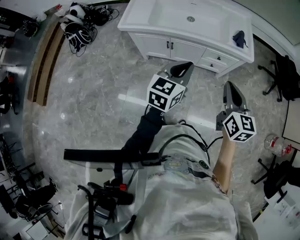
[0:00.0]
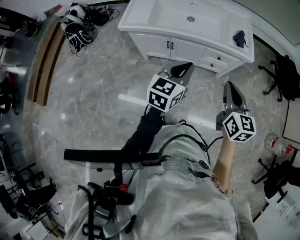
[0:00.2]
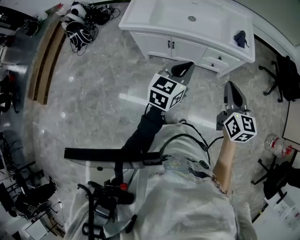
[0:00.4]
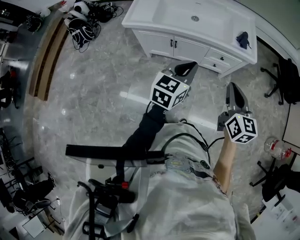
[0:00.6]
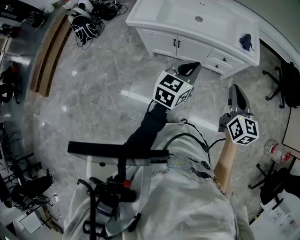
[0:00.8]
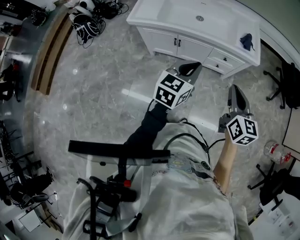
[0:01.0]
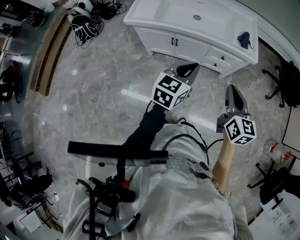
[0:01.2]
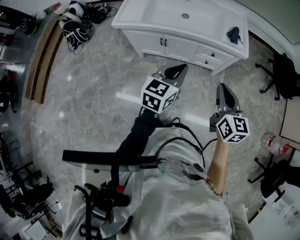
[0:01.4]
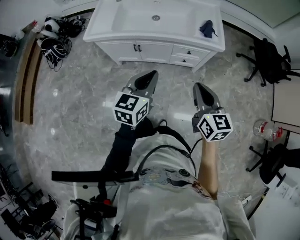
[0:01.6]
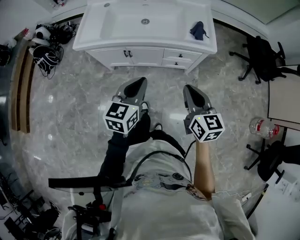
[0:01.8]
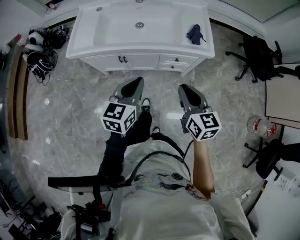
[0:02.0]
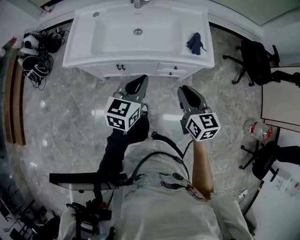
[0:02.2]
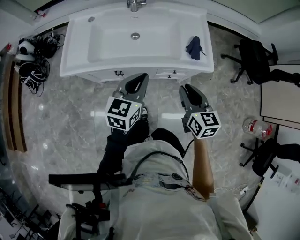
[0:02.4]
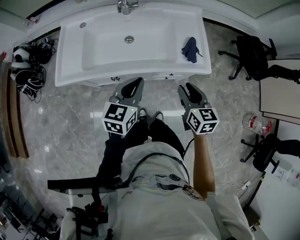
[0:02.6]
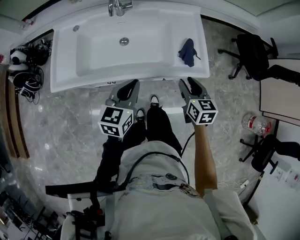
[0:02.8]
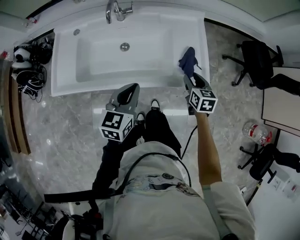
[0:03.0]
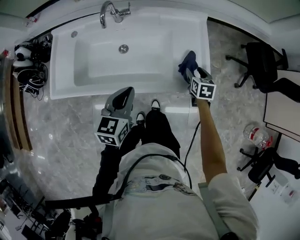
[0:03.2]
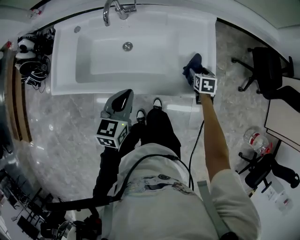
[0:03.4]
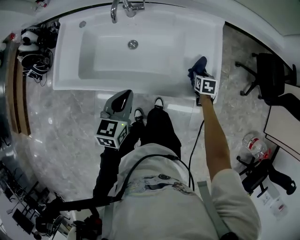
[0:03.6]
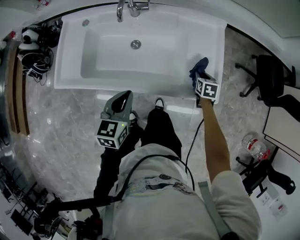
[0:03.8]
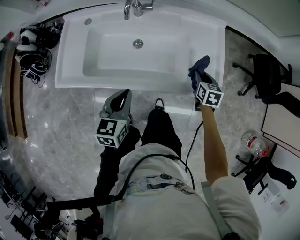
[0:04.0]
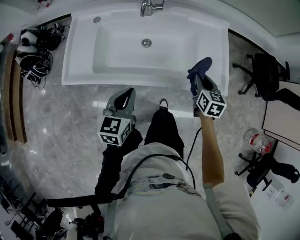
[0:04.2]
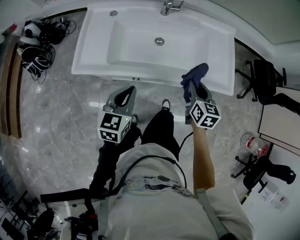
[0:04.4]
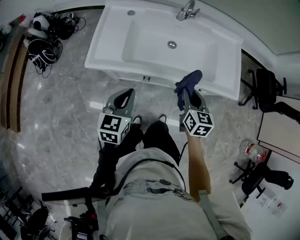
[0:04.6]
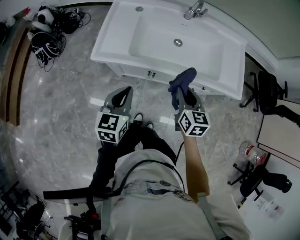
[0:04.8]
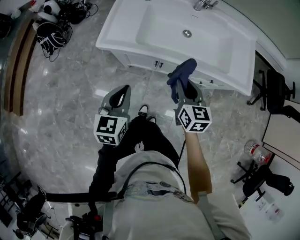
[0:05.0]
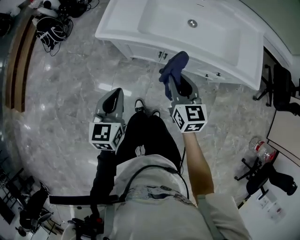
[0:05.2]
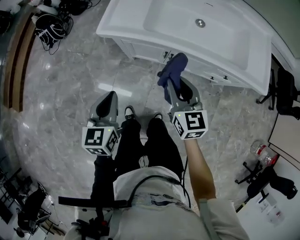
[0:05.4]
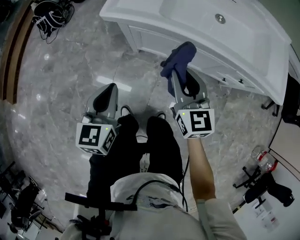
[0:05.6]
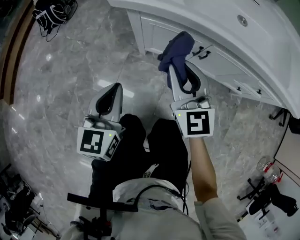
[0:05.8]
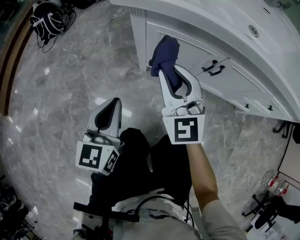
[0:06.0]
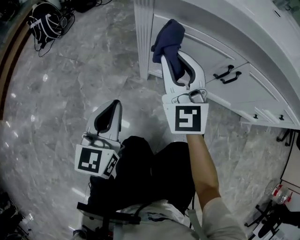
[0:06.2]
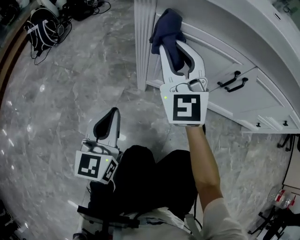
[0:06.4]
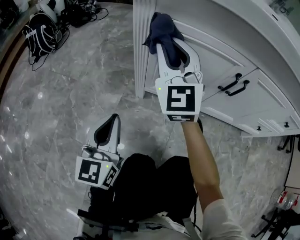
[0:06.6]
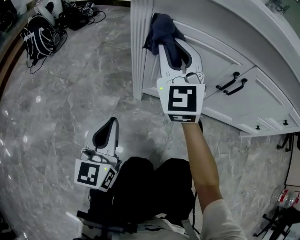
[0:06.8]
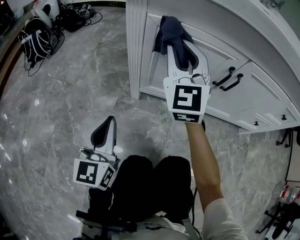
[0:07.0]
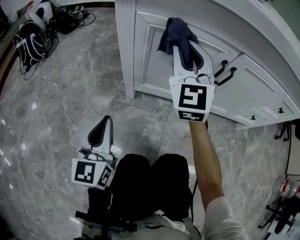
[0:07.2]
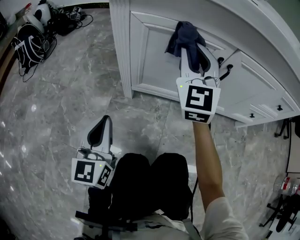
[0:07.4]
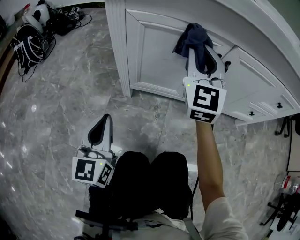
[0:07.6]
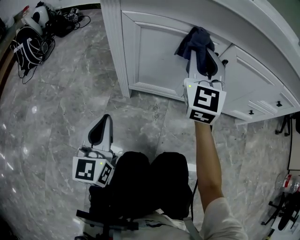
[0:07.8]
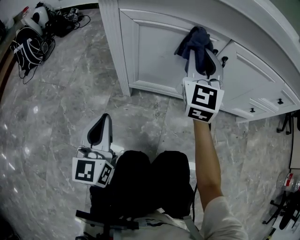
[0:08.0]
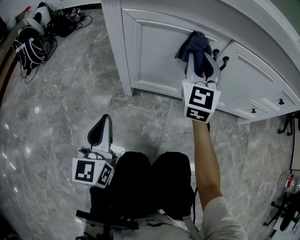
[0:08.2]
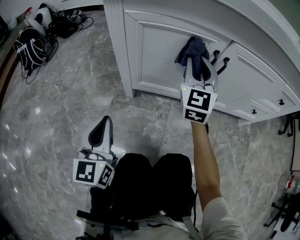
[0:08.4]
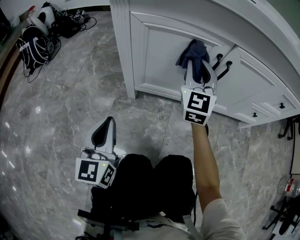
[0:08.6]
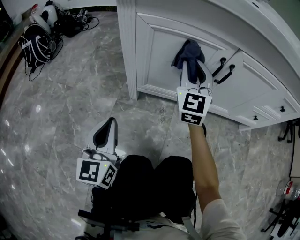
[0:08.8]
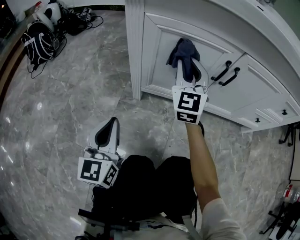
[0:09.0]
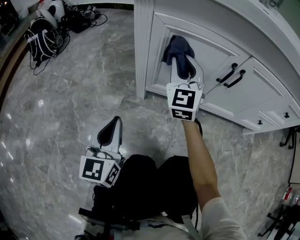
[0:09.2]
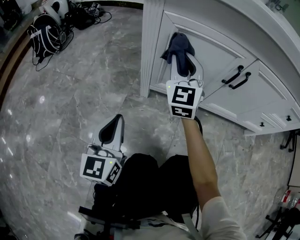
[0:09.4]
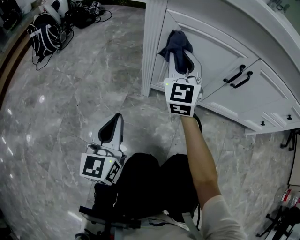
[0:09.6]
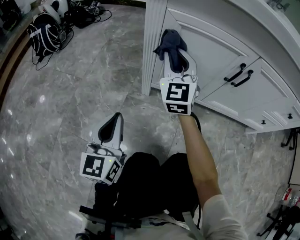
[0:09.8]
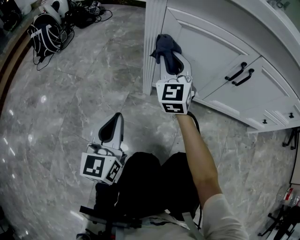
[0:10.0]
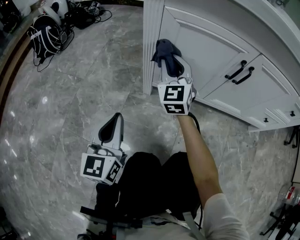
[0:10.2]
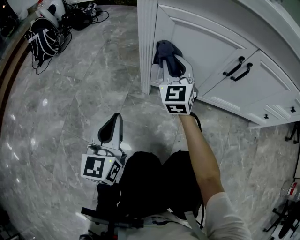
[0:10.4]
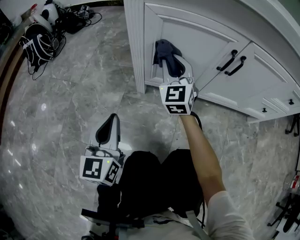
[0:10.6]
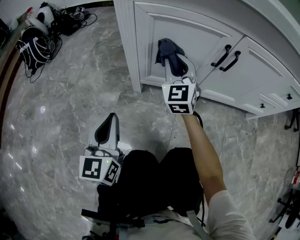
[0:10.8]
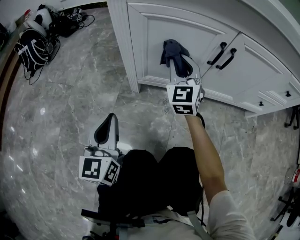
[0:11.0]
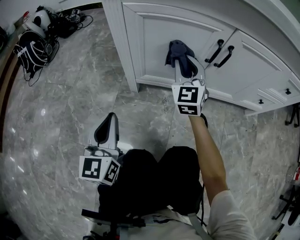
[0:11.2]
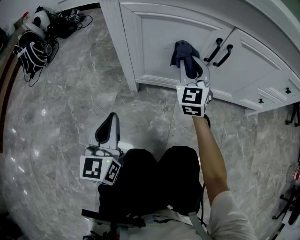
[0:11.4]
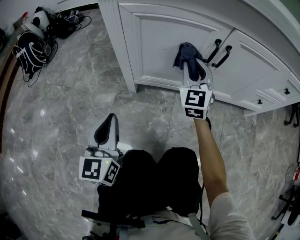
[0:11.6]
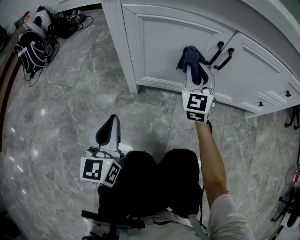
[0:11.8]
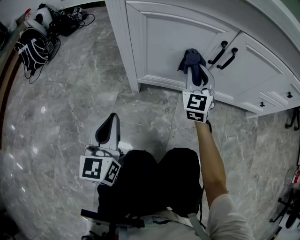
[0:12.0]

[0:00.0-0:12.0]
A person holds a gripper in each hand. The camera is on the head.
0:00.0 to 0:01.6: There are only small adjustments of the grippers.
0:01.6 to 0:03.0: The right gripper is displaced forward and downward by about 40 cm, turns by some 20 degrees, and opens its fingers, while the left gripper goes about 30 cm forward.
0:03.0 to 0:04.4: The right gripper moves to the left, approximately 20 cm; the left gripper moves to the left and backward, approximately 20 cm.
0:04.4 to 0:06.0: The left gripper changes place by approximately 50 cm, and turns by approximately 30 degrees. The right gripper changes place by some 50 cm, and turns by roughly 50 degrees.
0:06.0 to 0:07.6: The right gripper goes some 20 cm to the right, forward and downward, and turns by some 30 degrees. The left gripper goes about 15 cm downward.
0:07.6 to 0:09.0: The right gripper shifts roughly 10 cm downward and to the left.
0:09.0 to 0:10.4: The right gripper goes approximately 10 cm to the left and downward.
0:10.4 to 0:12.0: The right gripper goes some 15 cm to the right.

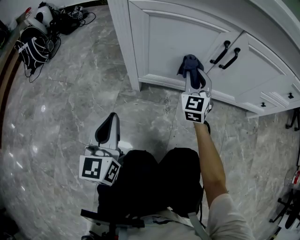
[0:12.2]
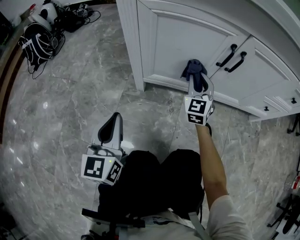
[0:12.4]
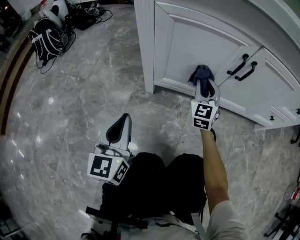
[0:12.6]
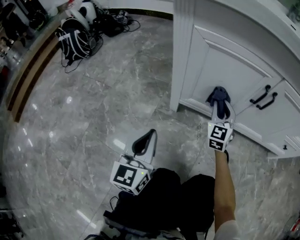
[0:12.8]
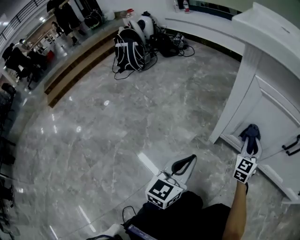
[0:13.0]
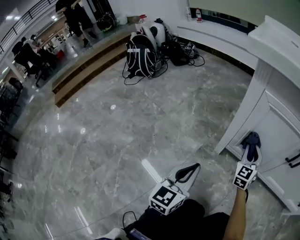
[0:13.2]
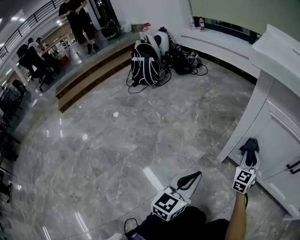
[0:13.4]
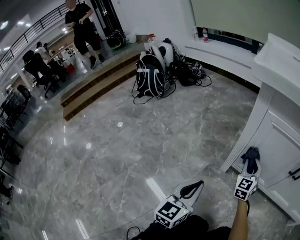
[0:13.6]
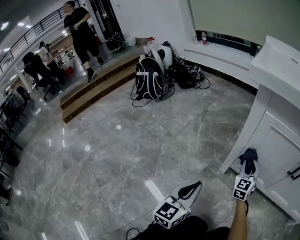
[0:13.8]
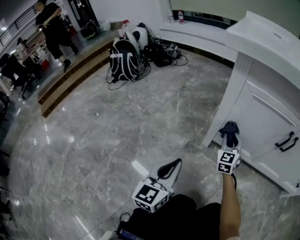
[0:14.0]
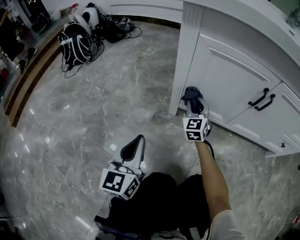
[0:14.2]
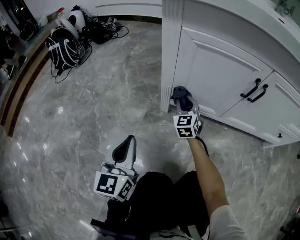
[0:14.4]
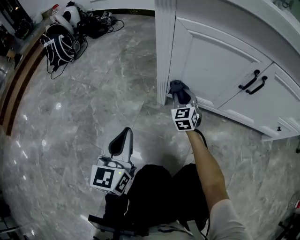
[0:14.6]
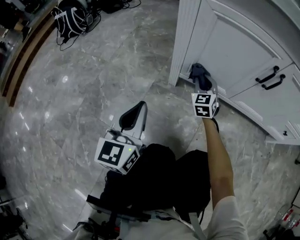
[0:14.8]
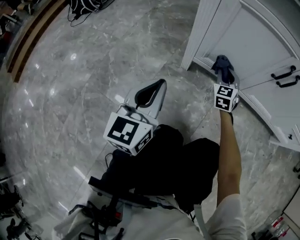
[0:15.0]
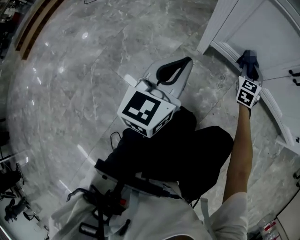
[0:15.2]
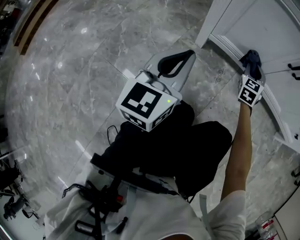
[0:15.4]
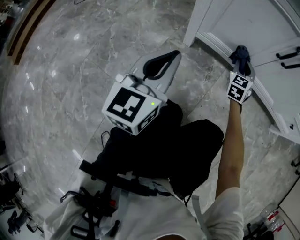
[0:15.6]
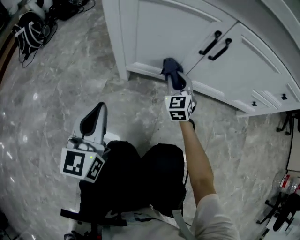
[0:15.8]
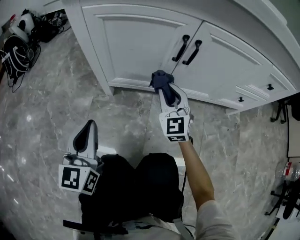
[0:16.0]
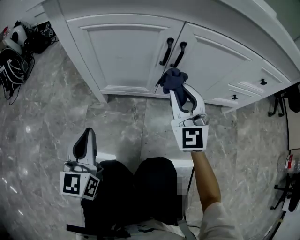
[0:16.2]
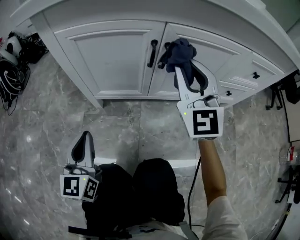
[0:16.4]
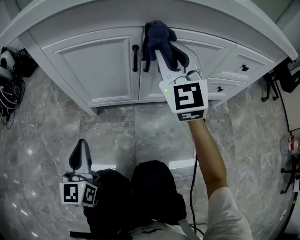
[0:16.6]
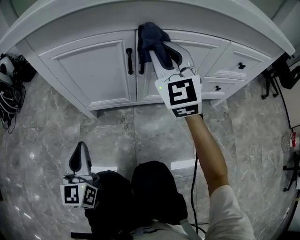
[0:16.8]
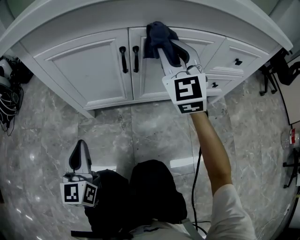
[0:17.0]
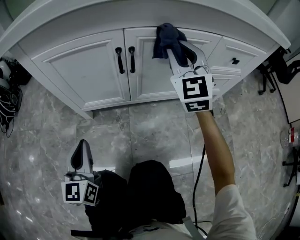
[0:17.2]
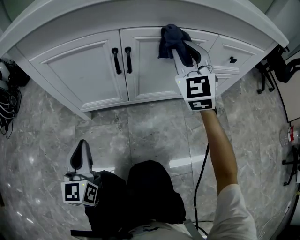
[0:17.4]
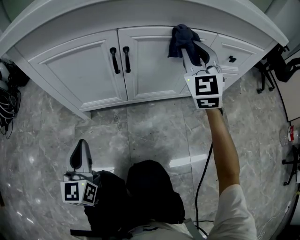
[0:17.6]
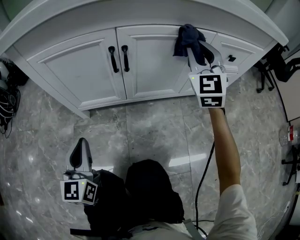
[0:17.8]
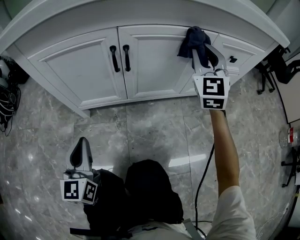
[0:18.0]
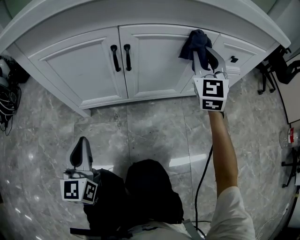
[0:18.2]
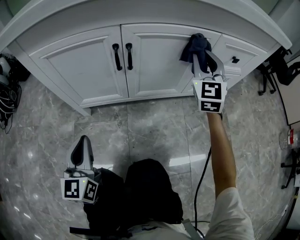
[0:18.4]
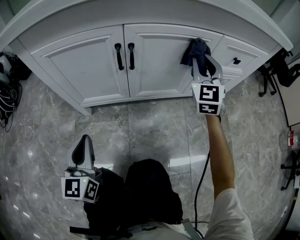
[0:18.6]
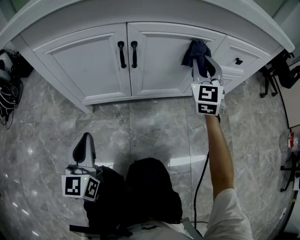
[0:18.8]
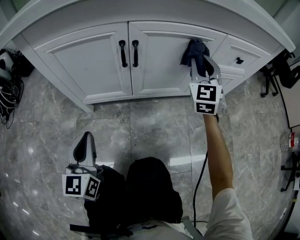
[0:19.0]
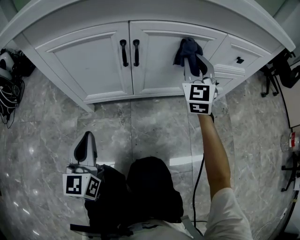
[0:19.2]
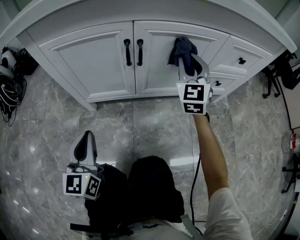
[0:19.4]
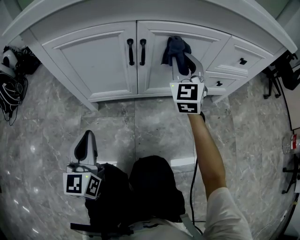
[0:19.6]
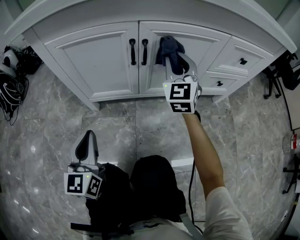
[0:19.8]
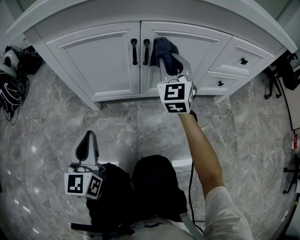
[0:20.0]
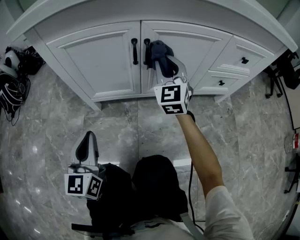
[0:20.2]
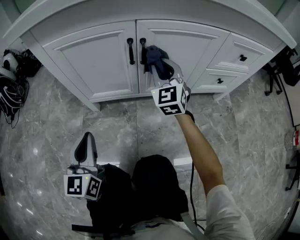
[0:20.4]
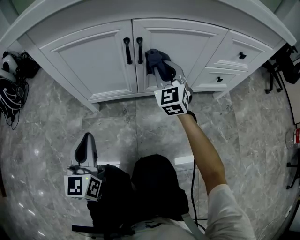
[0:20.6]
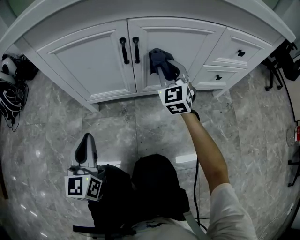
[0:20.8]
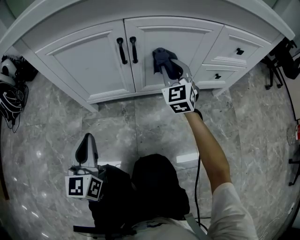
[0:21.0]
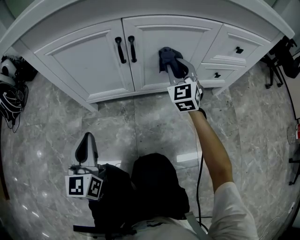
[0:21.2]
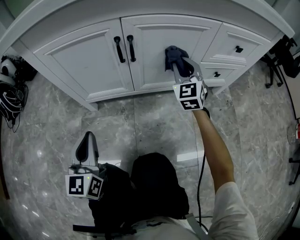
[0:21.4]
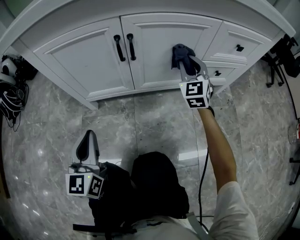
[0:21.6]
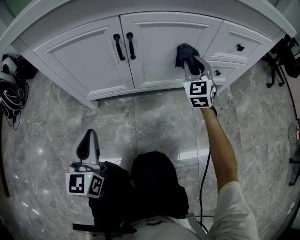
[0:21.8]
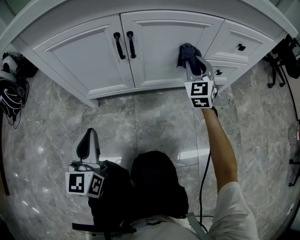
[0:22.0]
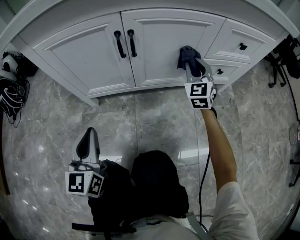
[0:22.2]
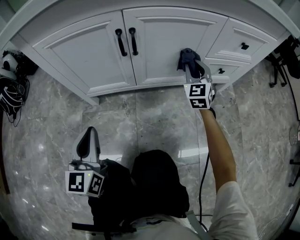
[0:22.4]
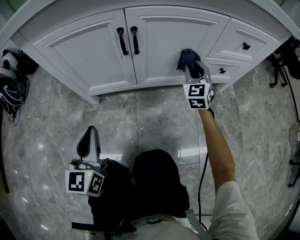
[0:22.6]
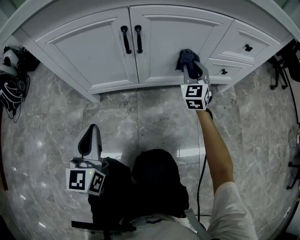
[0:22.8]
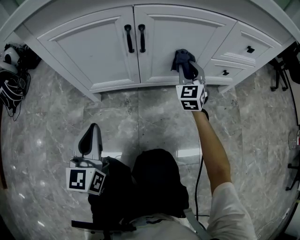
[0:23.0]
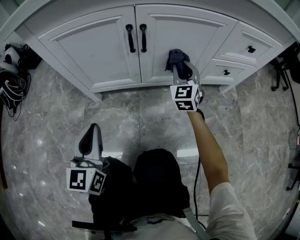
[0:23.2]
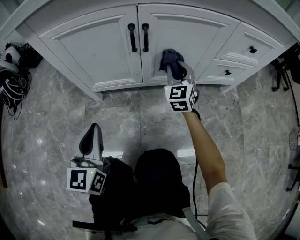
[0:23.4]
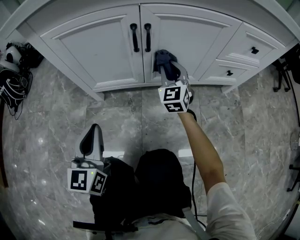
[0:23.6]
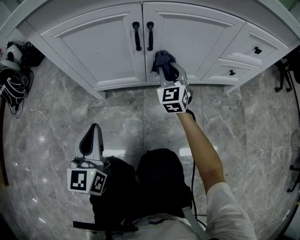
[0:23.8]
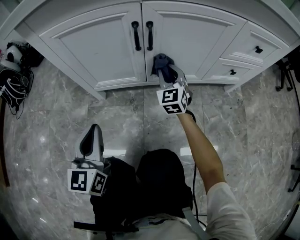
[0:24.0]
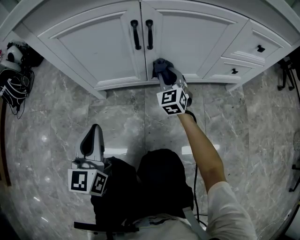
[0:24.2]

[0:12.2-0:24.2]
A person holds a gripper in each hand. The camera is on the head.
0:12.2 to 0:13.8: The left gripper travels to the left by some 5 cm; the right gripper shifts some 15 cm to the left.
0:13.8 to 0:15.2: The right gripper travels to the right and downward by about 15 cm, while the left gripper heads to the right, covering some 5 cm.
0:15.2 to 0:16.6: The right gripper shifts about 35 cm upward and to the right, and swivels roughly 30 degrees. The left gripper is displaced to the right by roughly 10 cm.
0:16.6 to 0:18.2: The left gripper travels to the right by approximately 5 cm. The right gripper moves to the right, some 20 cm.
0:18.2 to 0:19.8: The right gripper shifts about 15 cm to the left and downward.
0:19.8 to 0:21.2: The right gripper is displaced downward by some 10 cm.
0:21.2 to 0:22.6: The right gripper is displaced to the right by approximately 5 cm.
0:22.6 to 0:24.2: The right gripper travels to the left and downward by roughly 20 cm.
